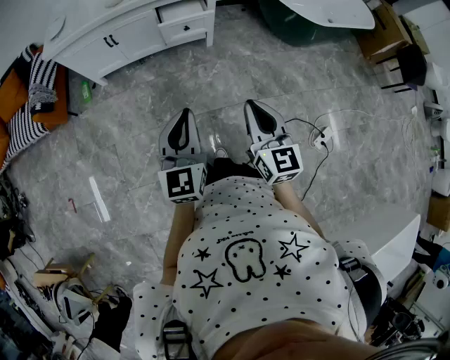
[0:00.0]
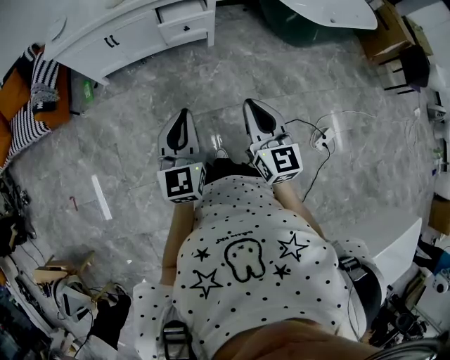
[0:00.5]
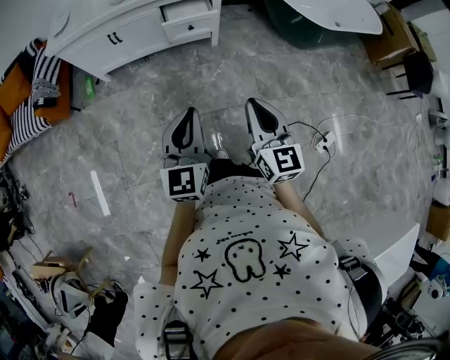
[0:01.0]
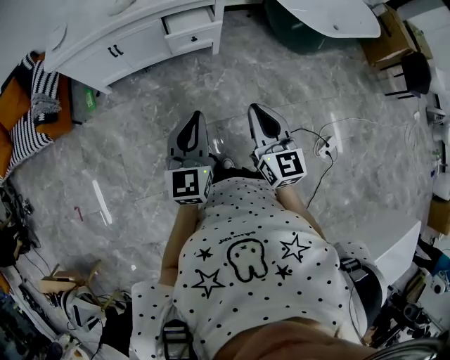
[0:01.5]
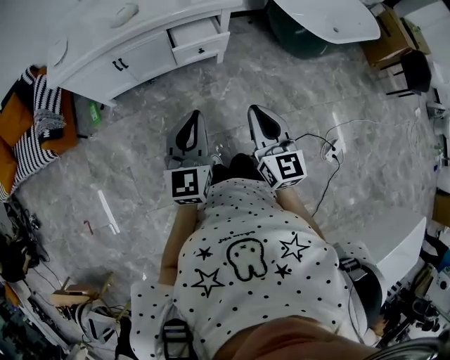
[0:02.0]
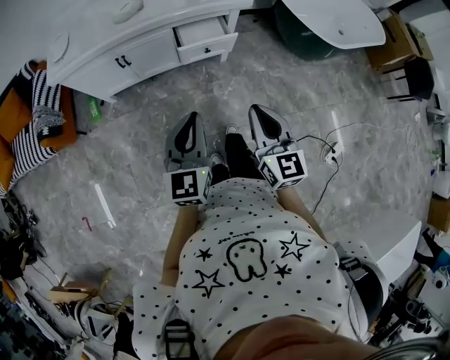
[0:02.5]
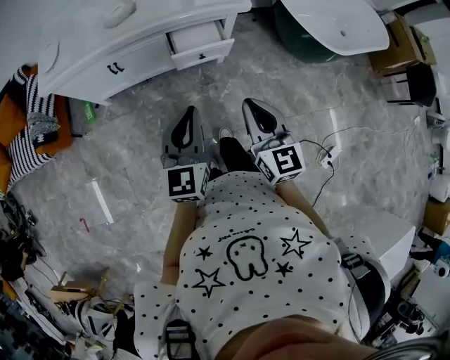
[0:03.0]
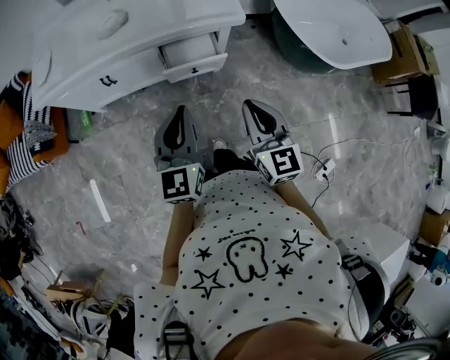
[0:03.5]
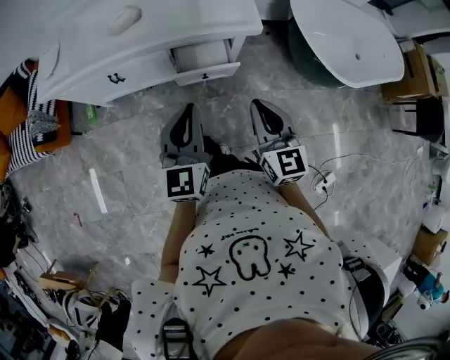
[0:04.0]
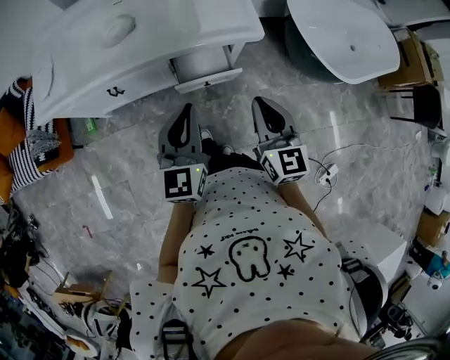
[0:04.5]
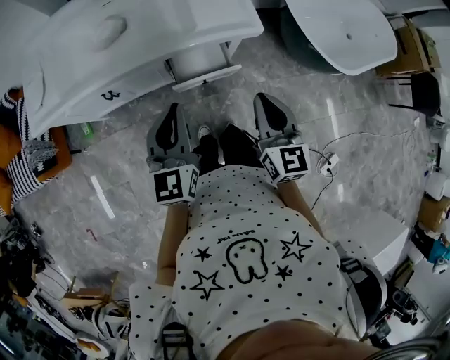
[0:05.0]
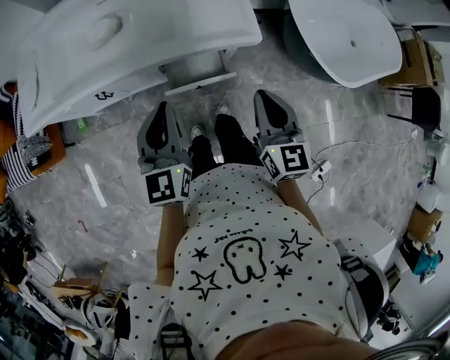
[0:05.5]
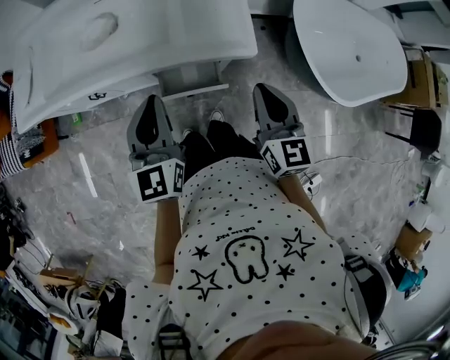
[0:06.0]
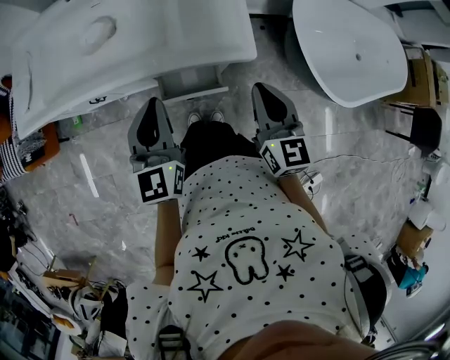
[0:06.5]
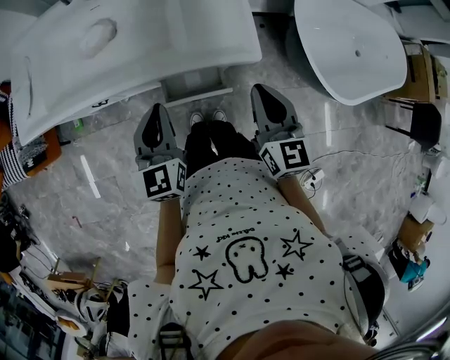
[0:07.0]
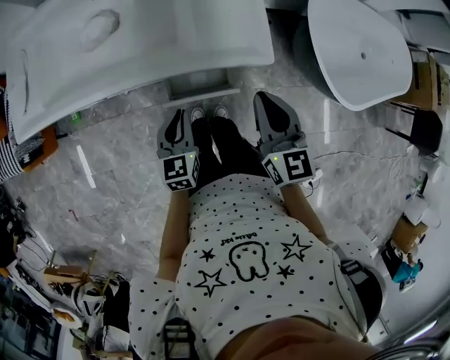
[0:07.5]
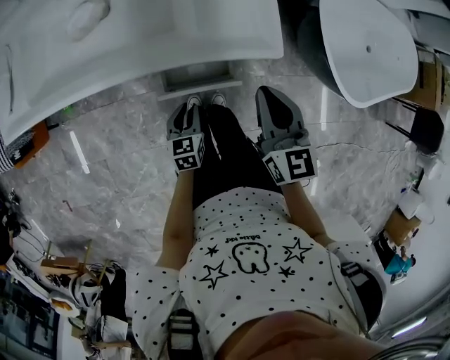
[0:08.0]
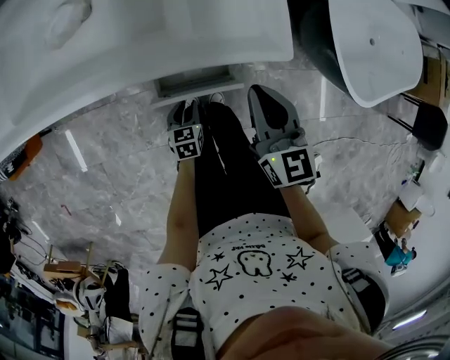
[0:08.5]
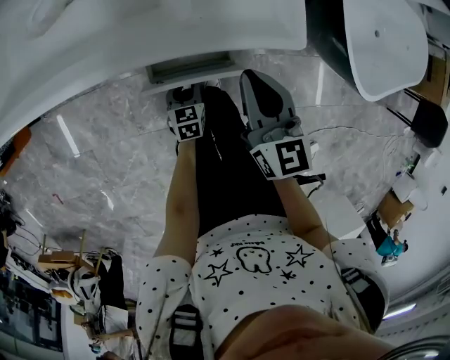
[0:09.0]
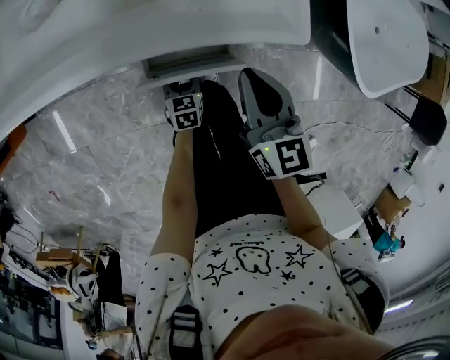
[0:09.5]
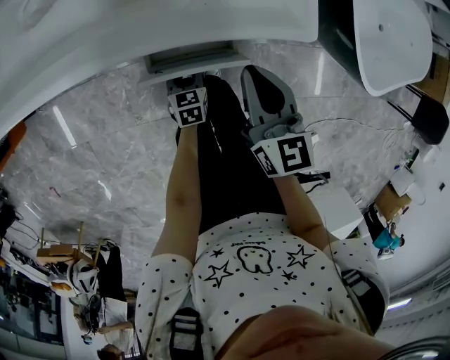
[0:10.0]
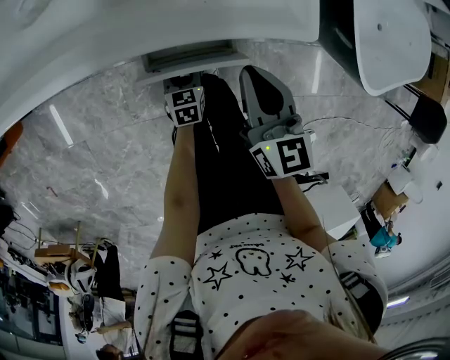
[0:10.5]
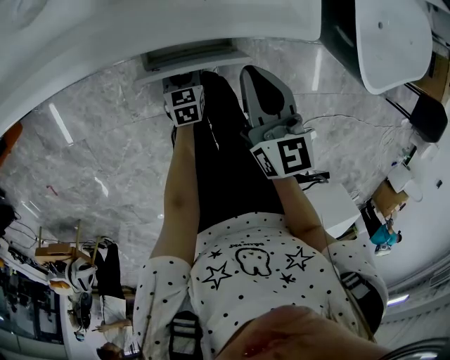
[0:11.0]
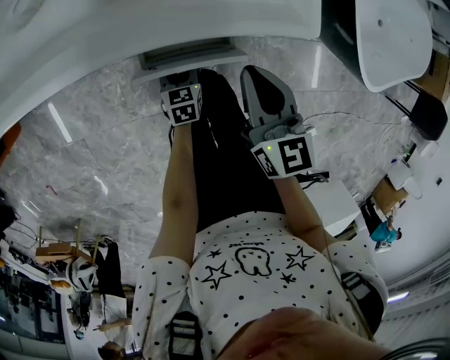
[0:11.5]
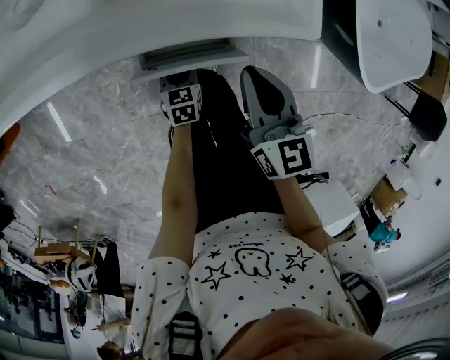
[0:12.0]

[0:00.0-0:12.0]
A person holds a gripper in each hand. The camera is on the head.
0:00.0 to 0:02.0: The left gripper is displaced forward by about 15 cm, while the right gripper shifts some 15 cm forward and to the left.
0:02.0 to 0:04.0: Both grippers travel together forward, some 25 cm.
0:04.0 to 0:06.0: Both grippers move forward, some 20 cm.
0:06.0 to 0:08.0: The right gripper goes roughly 5 cm downward; the left gripper moves downward, about 30 cm, and tips its fingers downward by approximately 30 degrees.
0:08.0 to 0:10.0: The two grippers go approximately 15 cm downward.
0:10.0 to 0:12.0: Both grippers stay put.

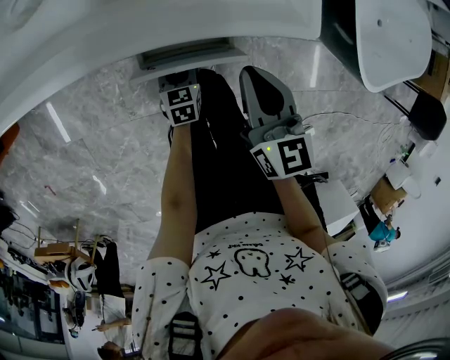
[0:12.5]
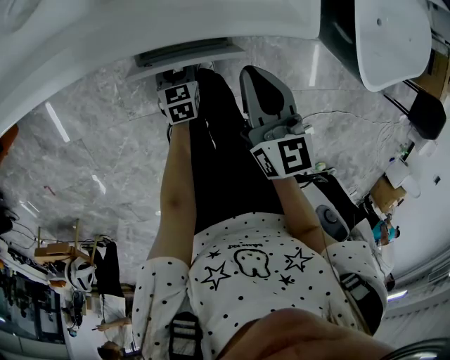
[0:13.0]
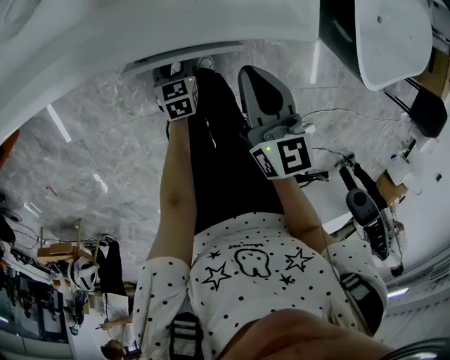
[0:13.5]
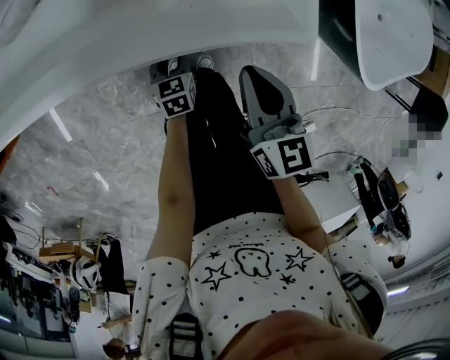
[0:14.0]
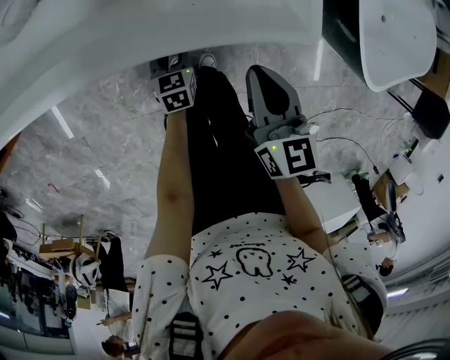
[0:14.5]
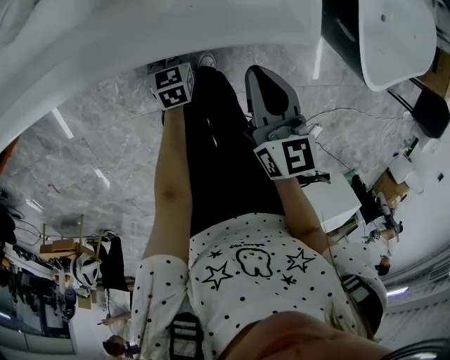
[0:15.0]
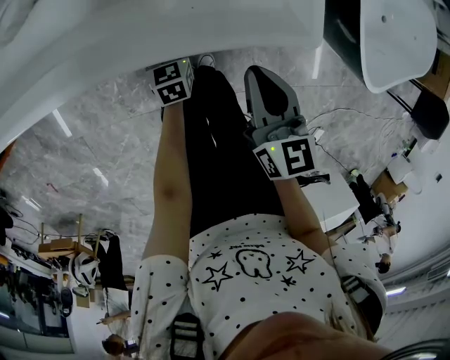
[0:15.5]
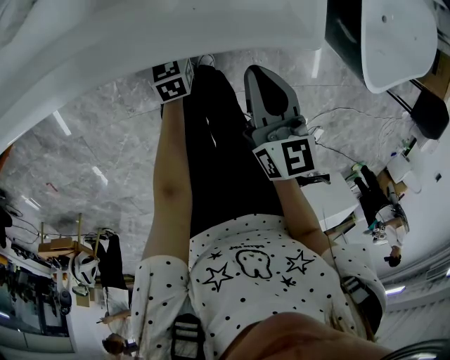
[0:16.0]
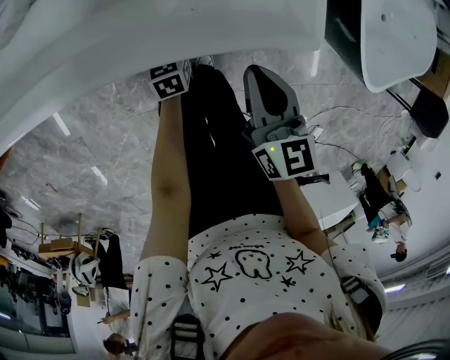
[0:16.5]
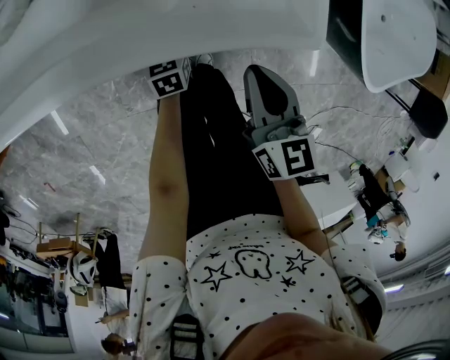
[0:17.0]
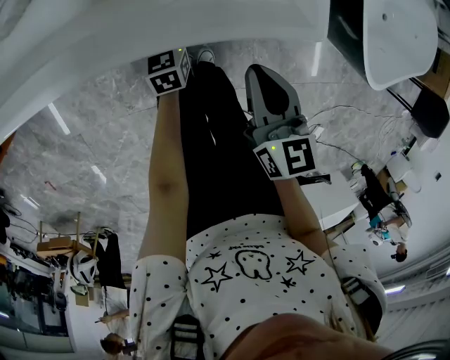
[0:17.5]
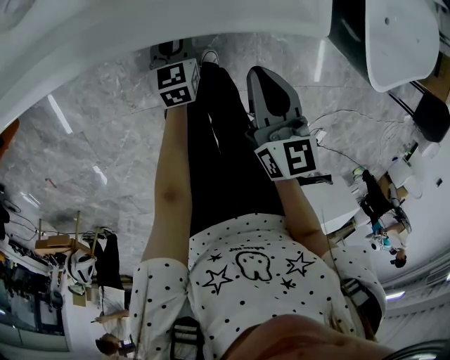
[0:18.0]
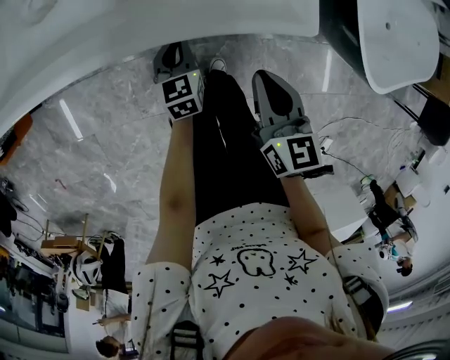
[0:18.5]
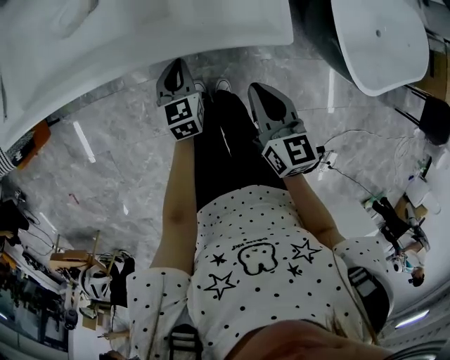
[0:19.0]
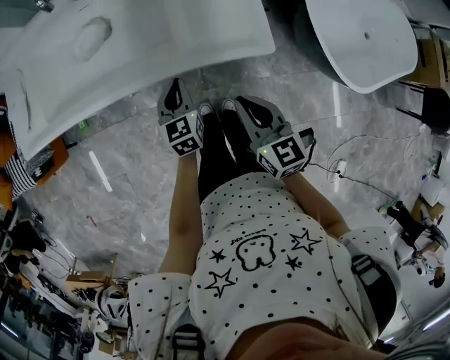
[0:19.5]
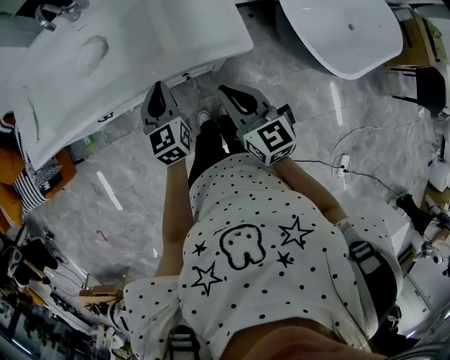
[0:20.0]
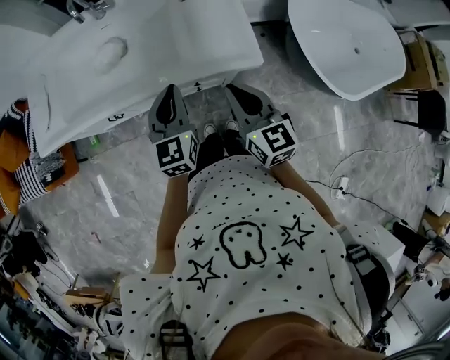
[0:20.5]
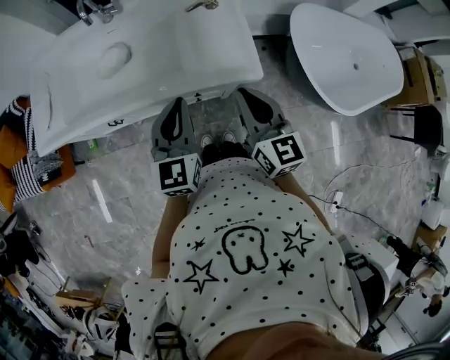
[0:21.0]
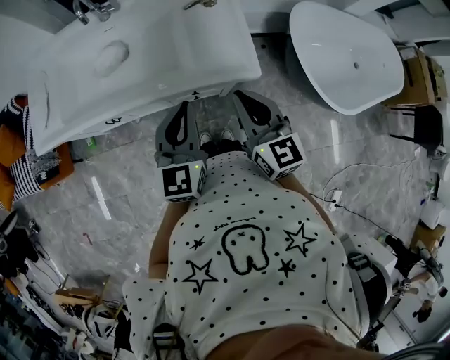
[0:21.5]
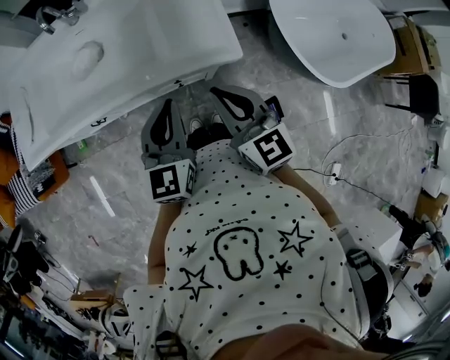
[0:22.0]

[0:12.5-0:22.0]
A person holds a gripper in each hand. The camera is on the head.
0:12.5 to 0:14.5: The left gripper moves forward, roughly 5 cm.
0:14.5 to 0:16.5: The left gripper moves forward, some 5 cm.
0:16.5 to 0:18.0: The left gripper shifts by about 5 cm.
0:18.0 to 0:20.0: The right gripper travels upward by roughly 20 cm; the left gripper goes about 30 cm upward, and changes its angle by roughly 20 degrees.
0:20.0 to 0:22.0: The right gripper goes approximately 5 cm upward, while the left gripper heads upward and backward, covering about 10 cm.

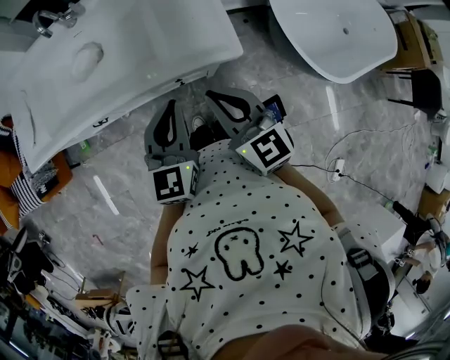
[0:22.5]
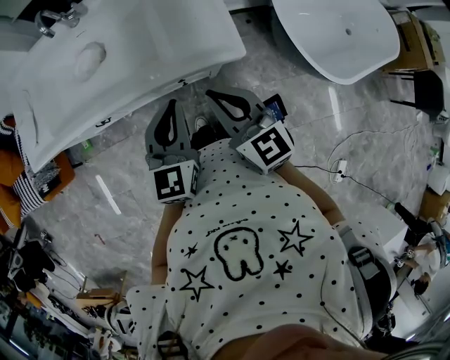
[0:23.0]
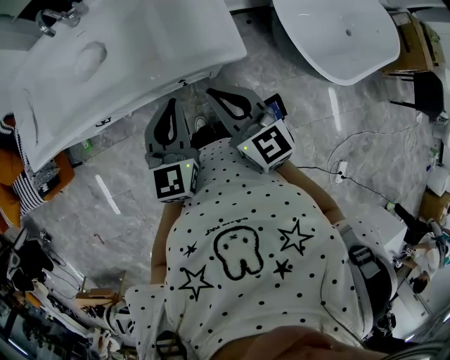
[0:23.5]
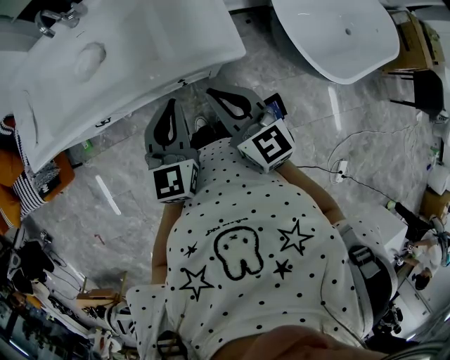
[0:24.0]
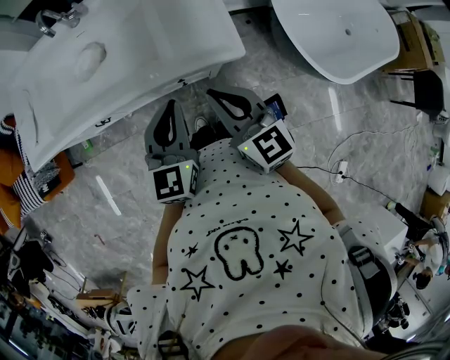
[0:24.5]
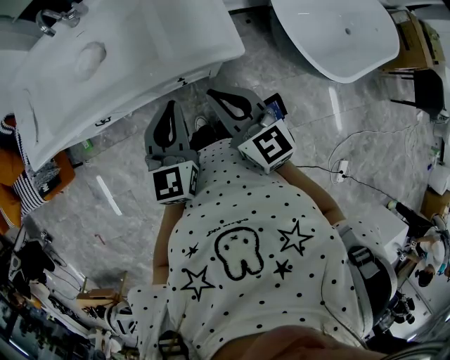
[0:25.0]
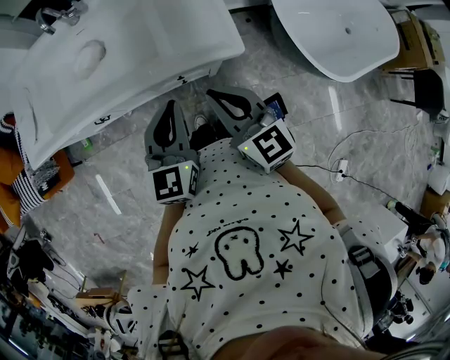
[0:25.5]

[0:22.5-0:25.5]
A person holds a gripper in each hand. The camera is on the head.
0:22.5 to 0:25.5: Both grippers stay put.

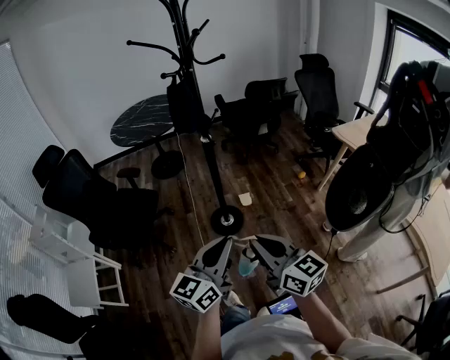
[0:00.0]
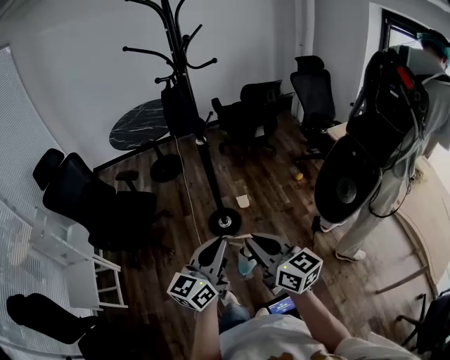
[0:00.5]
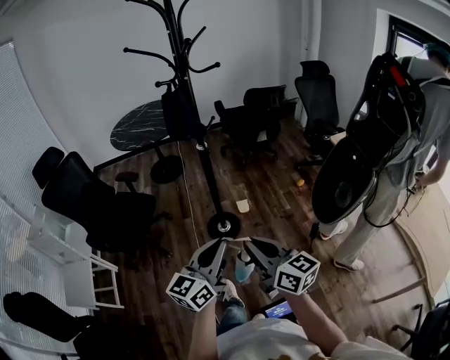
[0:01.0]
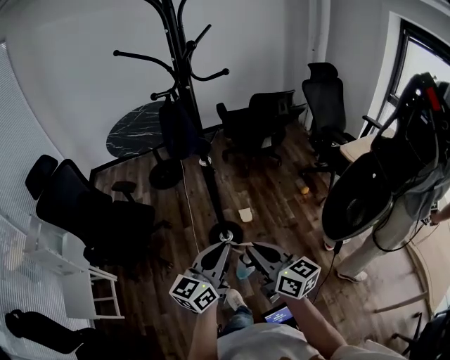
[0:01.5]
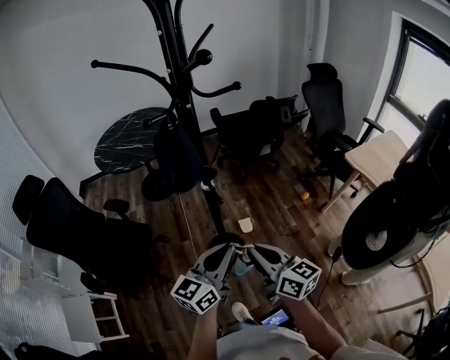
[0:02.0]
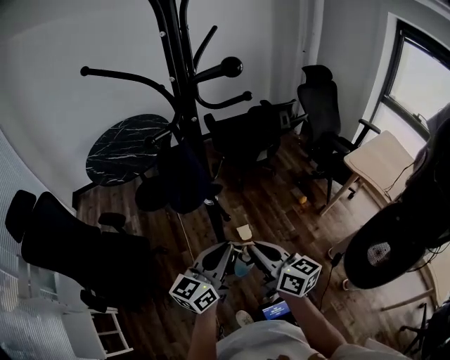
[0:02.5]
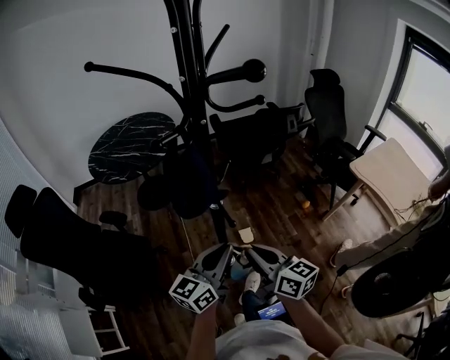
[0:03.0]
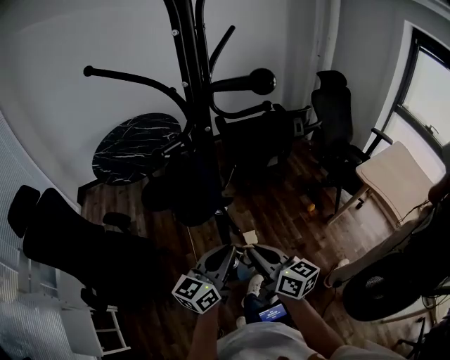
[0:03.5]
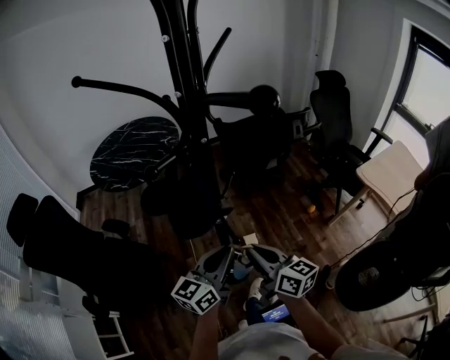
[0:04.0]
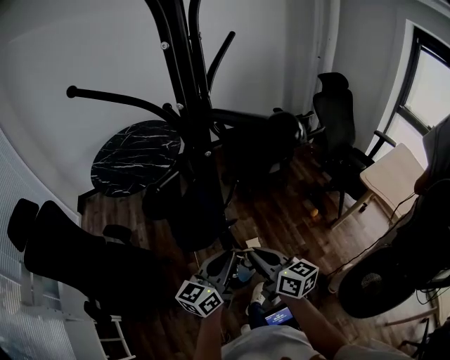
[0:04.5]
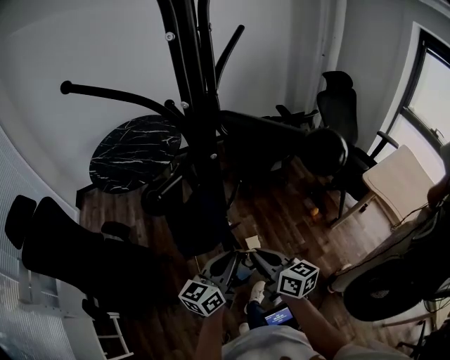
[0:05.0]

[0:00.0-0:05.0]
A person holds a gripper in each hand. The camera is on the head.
0:00.0 to 0:02.5: Both grippers move forward, approximately 35 cm.
0:02.5 to 0:05.0: Both grippers travel together forward and downward, roughly 15 cm.
